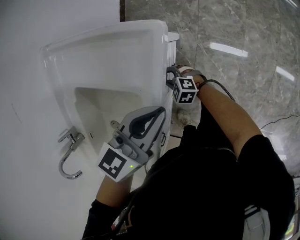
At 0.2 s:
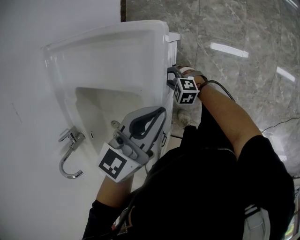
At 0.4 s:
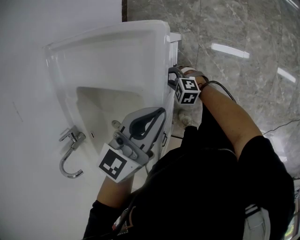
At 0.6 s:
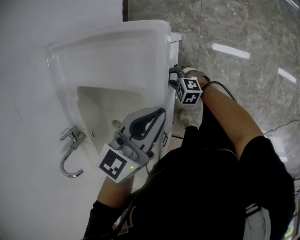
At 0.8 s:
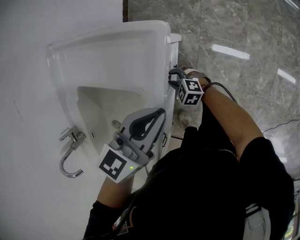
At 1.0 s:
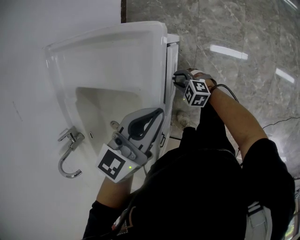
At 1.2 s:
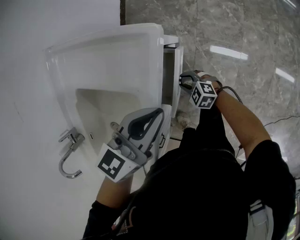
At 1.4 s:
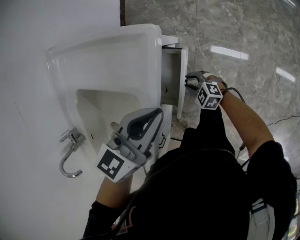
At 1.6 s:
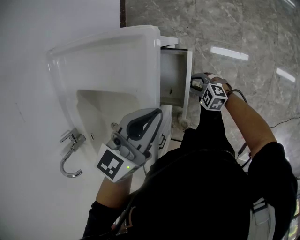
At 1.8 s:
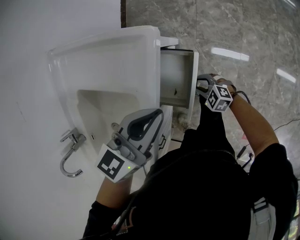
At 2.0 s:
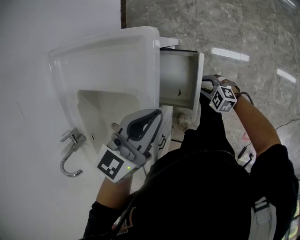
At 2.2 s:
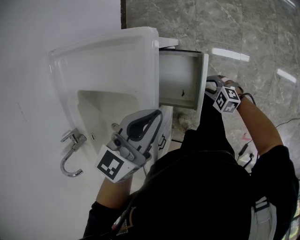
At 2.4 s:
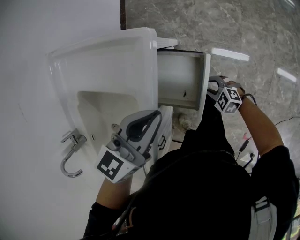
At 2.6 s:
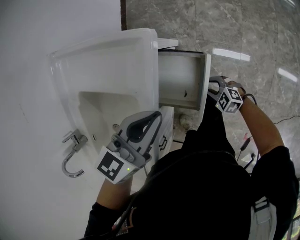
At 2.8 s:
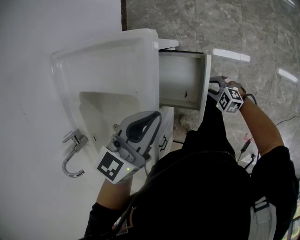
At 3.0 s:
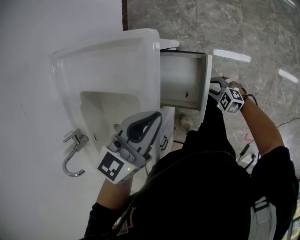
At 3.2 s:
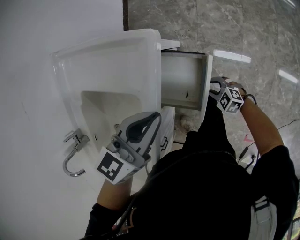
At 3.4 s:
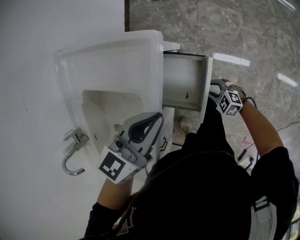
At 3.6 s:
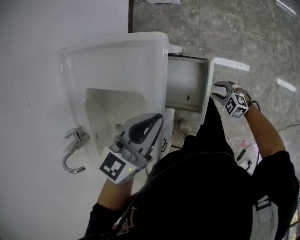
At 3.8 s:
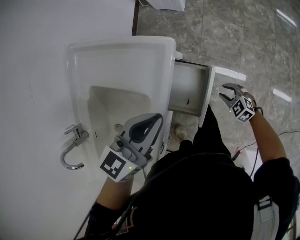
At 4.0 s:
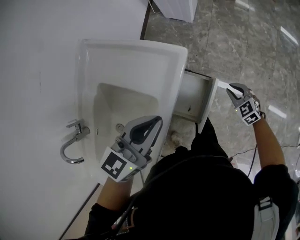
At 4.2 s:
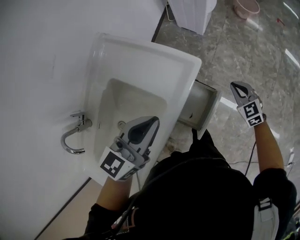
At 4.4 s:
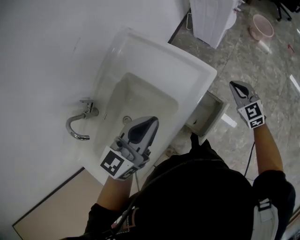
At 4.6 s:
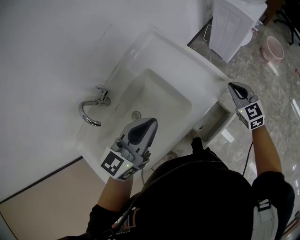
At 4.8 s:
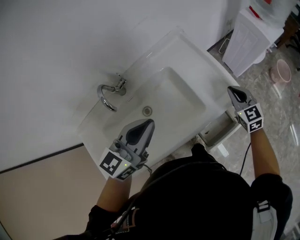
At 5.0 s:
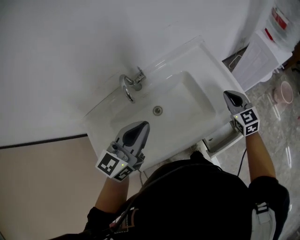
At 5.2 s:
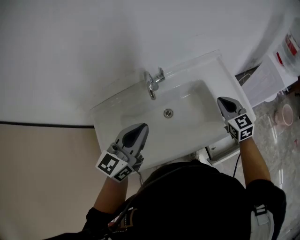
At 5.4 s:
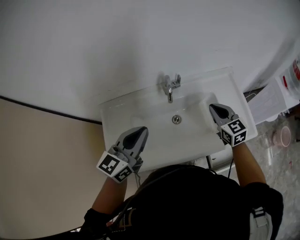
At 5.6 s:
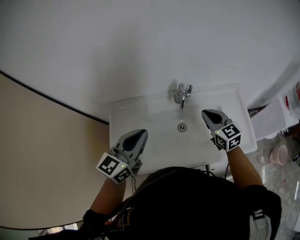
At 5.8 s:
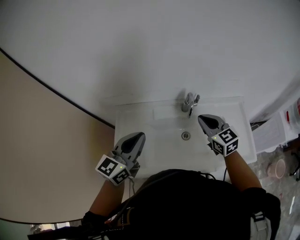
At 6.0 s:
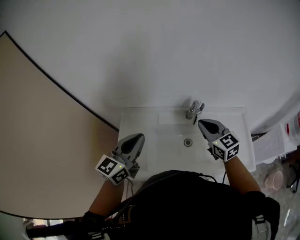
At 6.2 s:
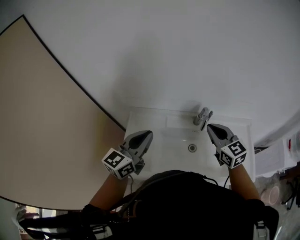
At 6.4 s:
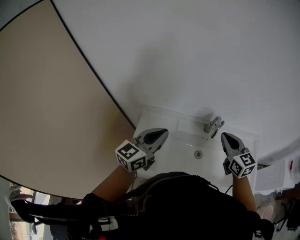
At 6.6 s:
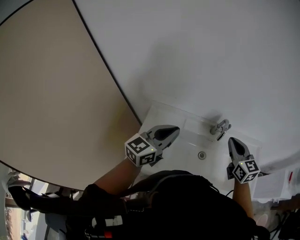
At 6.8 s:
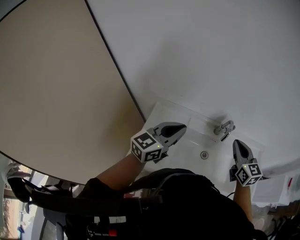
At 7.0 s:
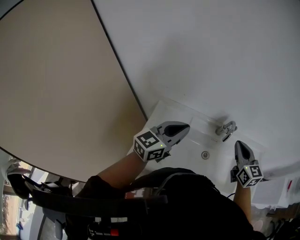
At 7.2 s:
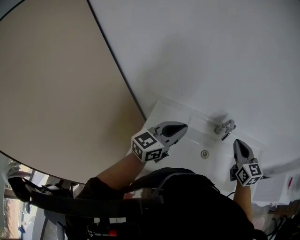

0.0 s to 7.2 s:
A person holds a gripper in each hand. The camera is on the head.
0.0 to 1.4 s: The right gripper moves some 10 cm.
1.4 to 2.8 s: The right gripper changes place by roughly 10 cm.
2.8 to 4.4 s: The right gripper moves upward, roughly 30 cm, turns by some 30 degrees, and closes its fingers; the left gripper moves upward, some 15 cm, and rotates about 30 degrees.
4.4 to 5.8 s: The pair of grippers is taken roughly 60 cm. The left gripper rotates some 60 degrees, while the right gripper changes its angle by approximately 50 degrees.
5.8 to 7.2 s: The right gripper changes place by about 5 cm.

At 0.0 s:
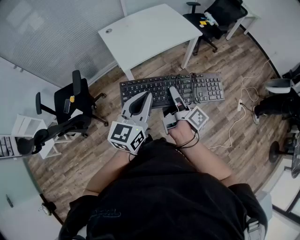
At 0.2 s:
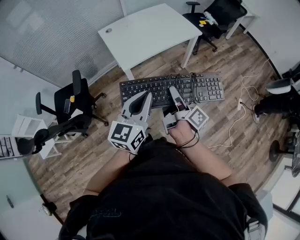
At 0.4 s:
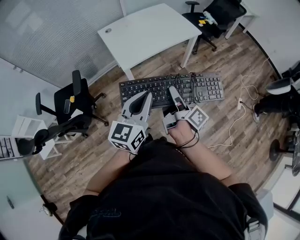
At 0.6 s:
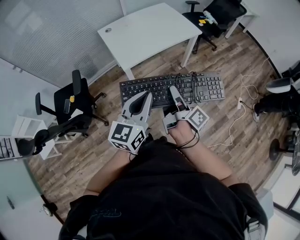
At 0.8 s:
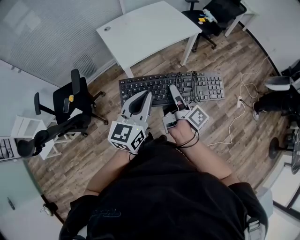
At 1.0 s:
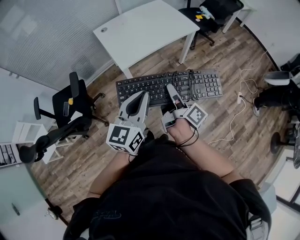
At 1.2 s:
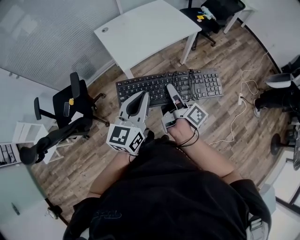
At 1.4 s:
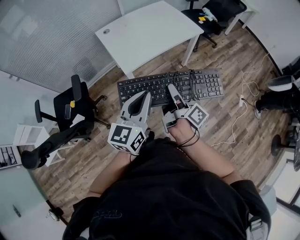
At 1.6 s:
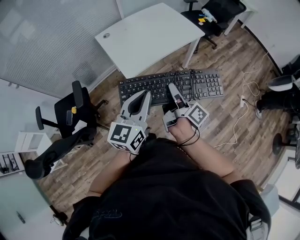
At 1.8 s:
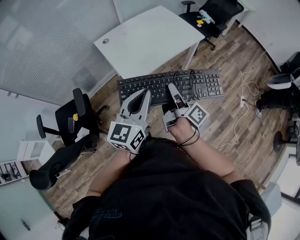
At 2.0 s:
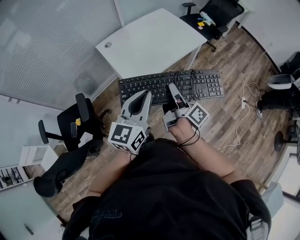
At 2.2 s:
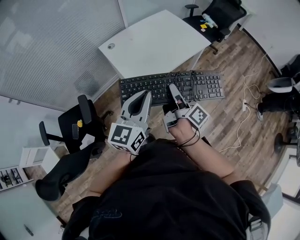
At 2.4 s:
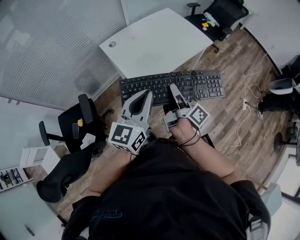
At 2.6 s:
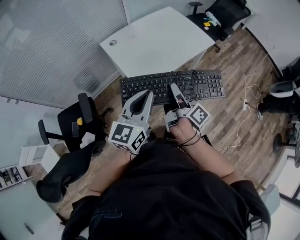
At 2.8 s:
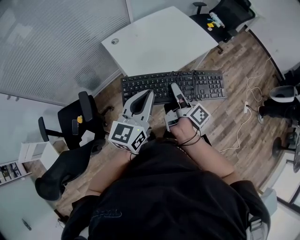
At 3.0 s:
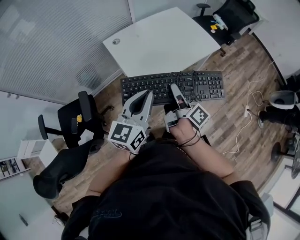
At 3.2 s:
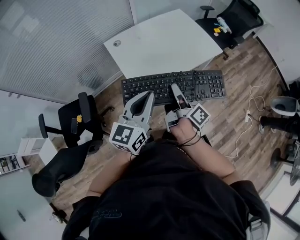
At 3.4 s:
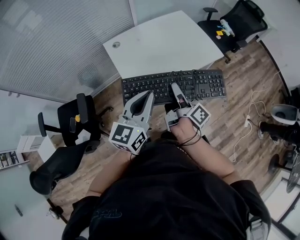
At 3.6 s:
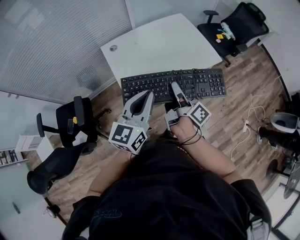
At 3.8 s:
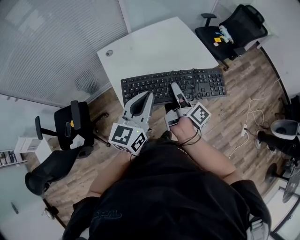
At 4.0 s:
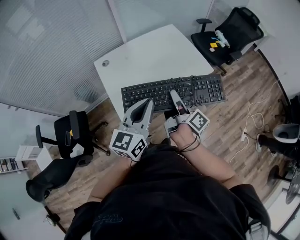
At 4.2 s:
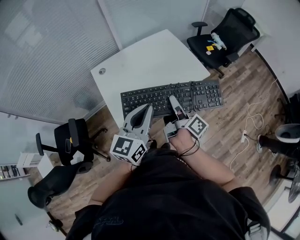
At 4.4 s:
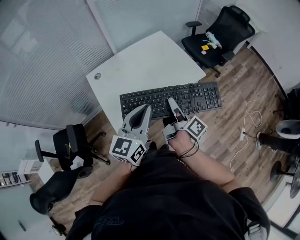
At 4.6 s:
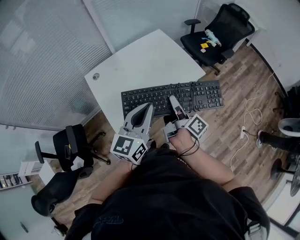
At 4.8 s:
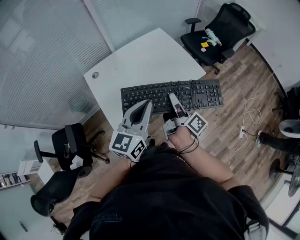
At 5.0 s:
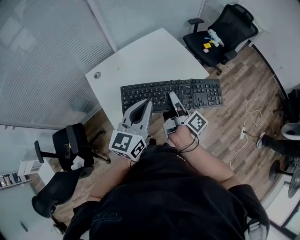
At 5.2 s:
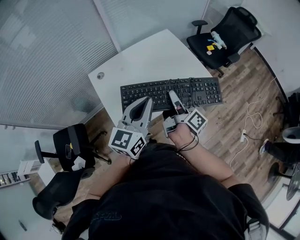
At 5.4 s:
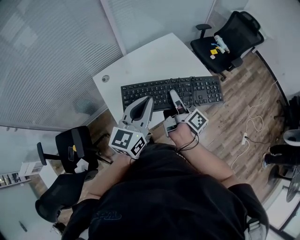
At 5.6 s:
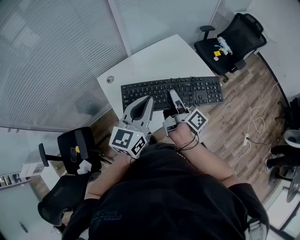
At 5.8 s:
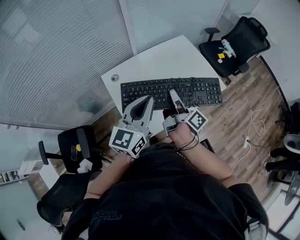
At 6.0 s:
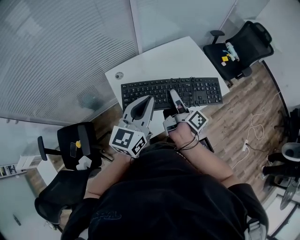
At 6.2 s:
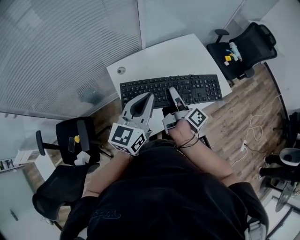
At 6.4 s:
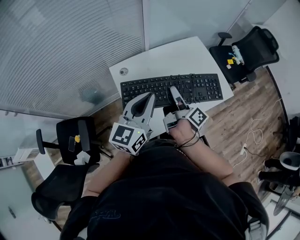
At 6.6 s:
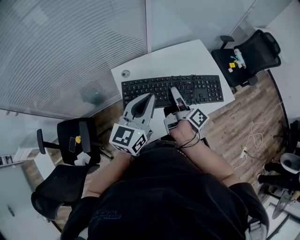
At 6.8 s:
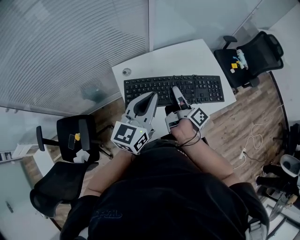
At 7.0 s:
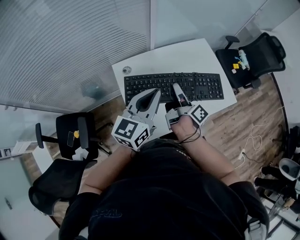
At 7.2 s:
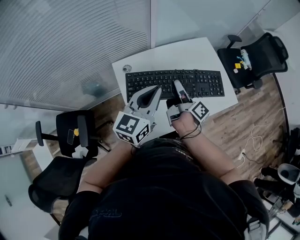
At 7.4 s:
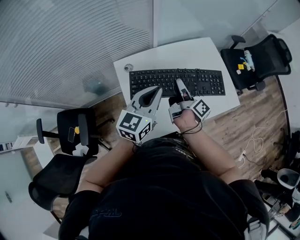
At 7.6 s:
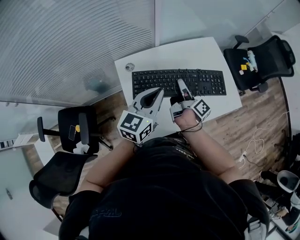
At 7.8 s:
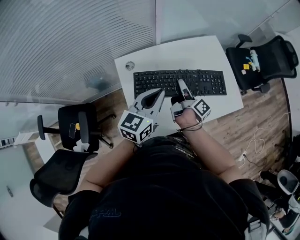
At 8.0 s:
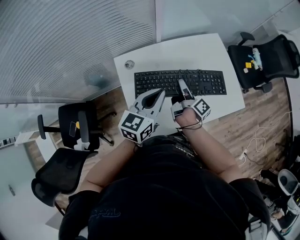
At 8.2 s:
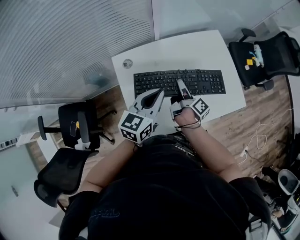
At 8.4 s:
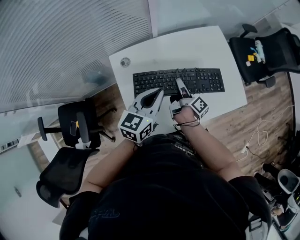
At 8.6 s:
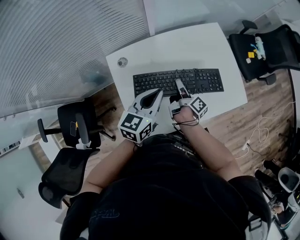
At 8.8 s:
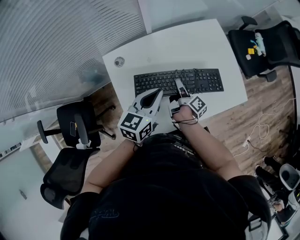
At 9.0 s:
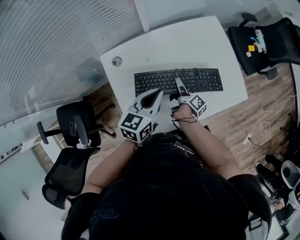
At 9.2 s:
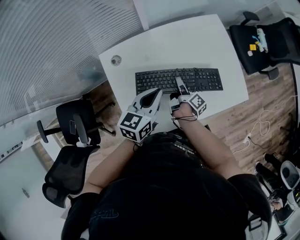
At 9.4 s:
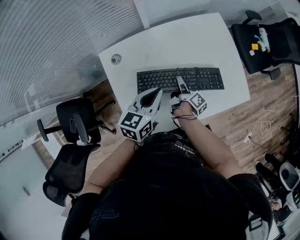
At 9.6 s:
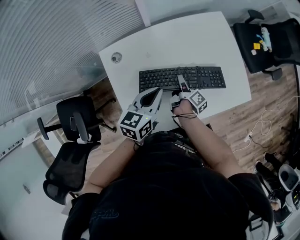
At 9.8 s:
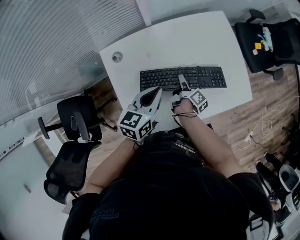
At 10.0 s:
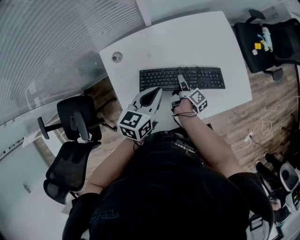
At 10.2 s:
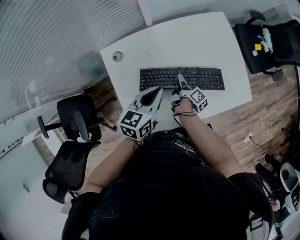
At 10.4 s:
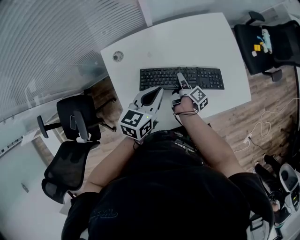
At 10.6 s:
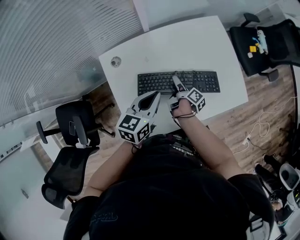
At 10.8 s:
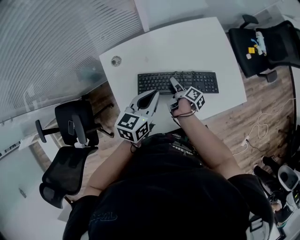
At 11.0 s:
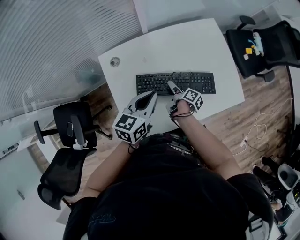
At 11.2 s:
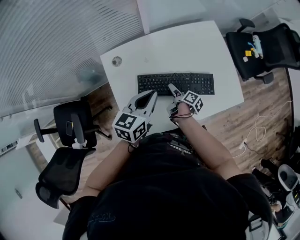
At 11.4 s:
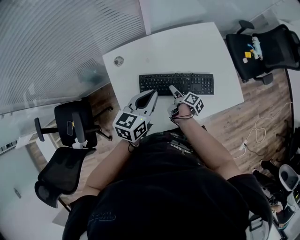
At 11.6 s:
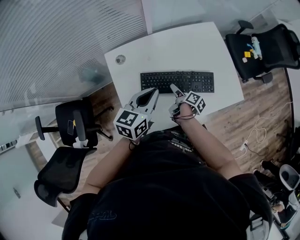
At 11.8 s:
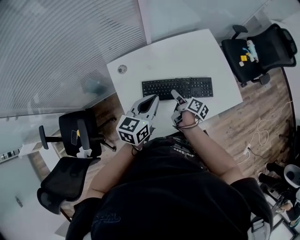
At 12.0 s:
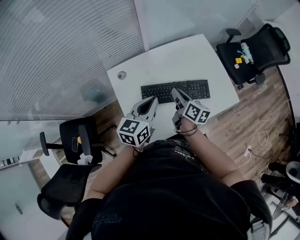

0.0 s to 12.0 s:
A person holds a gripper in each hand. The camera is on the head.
0.0 to 1.6 s: The grippers both shift forward and to the left by approximately 10 cm.
1.6 to 3.0 s: Both grippers travel together forward and to the left, some 15 cm.
3.0 to 4.4 s: Both grippers travel together forward and to the right, approximately 25 cm.
4.4 to 6.0 s: Both grippers move to the left and forward, some 20 cm.
6.0 to 7.6 s: Both grippers move forward and downward, roughly 15 cm.
7.6 to 9.0 s: The left gripper is displaced downward and forward by approximately 10 cm. Meanwhile the right gripper heads downward, covering about 15 cm.
9.0 to 10.4 s: There are only small adjustments of the grippers.
10.4 to 12.0 s: The left gripper is displaced upward and backward by roughly 10 cm. Meanwhile the right gripper is displaced upward by roughly 20 cm, rolls counterclockwise, seen from behind, by roughly 40 degrees, and opens and closes again.

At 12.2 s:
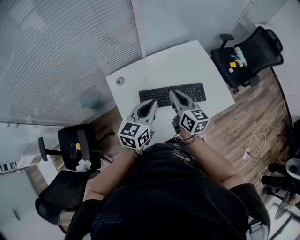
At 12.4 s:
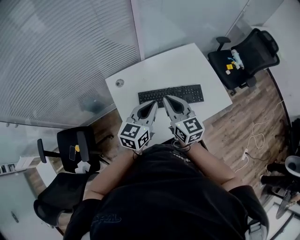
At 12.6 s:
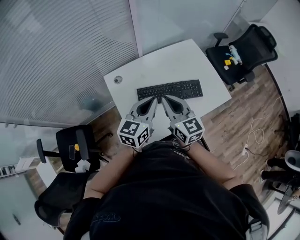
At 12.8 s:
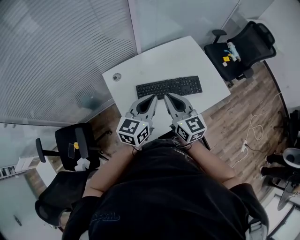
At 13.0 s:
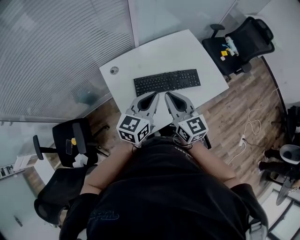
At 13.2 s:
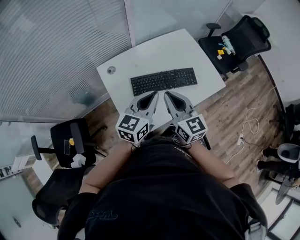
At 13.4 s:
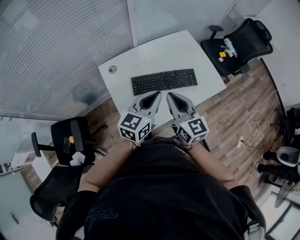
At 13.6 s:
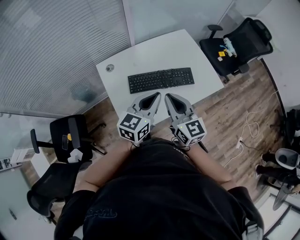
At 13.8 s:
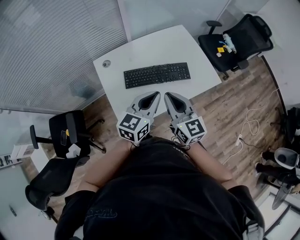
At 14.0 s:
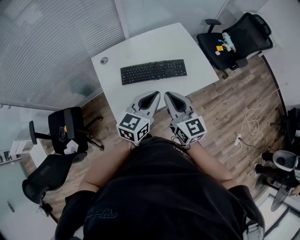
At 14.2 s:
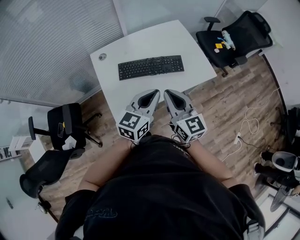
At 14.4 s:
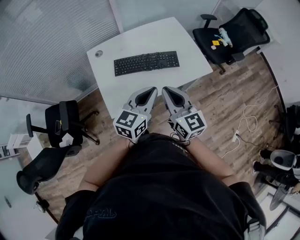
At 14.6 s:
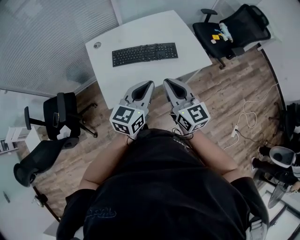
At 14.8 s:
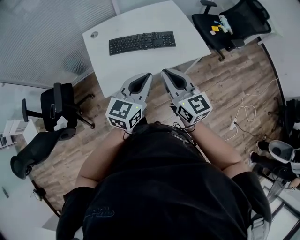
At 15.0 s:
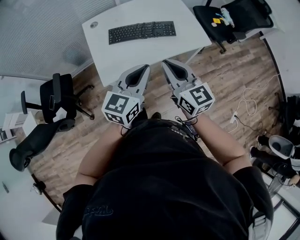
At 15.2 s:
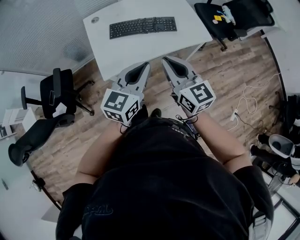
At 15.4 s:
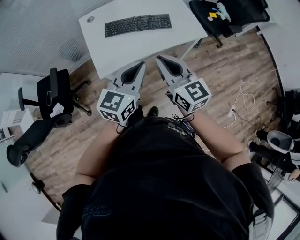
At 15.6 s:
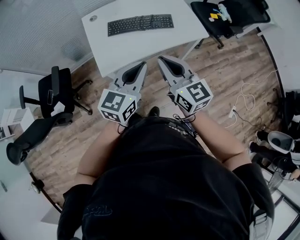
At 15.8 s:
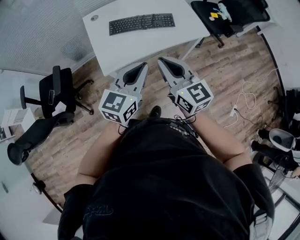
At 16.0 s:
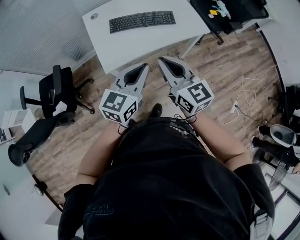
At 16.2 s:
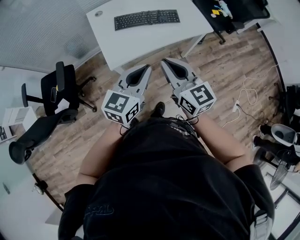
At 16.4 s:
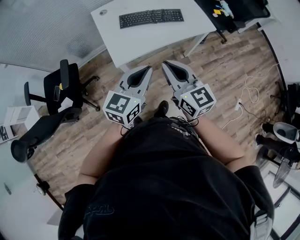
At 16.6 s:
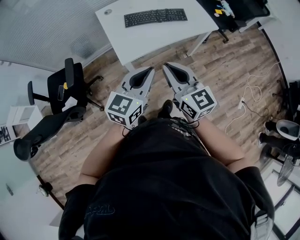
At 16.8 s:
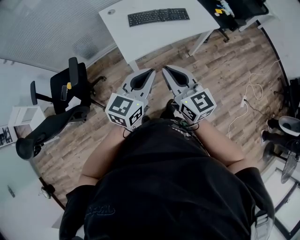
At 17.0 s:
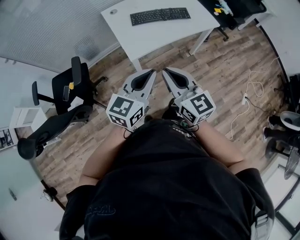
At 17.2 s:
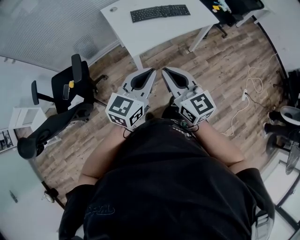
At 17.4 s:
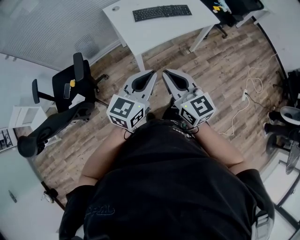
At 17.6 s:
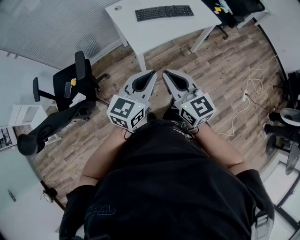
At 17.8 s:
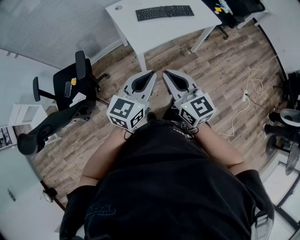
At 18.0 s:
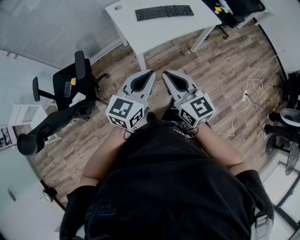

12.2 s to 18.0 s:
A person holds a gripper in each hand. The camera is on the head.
12.2 to 13.6 s: The right gripper shifts about 15 cm backward and upward, while the left gripper is displaced backward and to the right by roughly 10 cm.
13.6 to 15.0 s: Both grippers move backward and to the right, some 20 cm.
15.0 to 16.6 s: Both grippers travel together backward and to the left, some 20 cm.
16.6 to 18.0 s: Both grippers travel together backward and to the left, some 15 cm.
